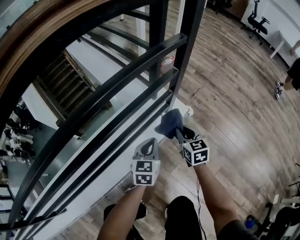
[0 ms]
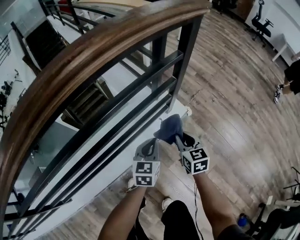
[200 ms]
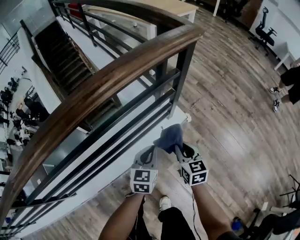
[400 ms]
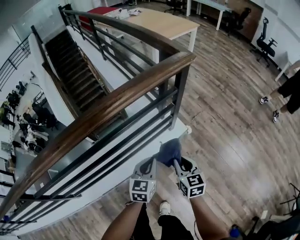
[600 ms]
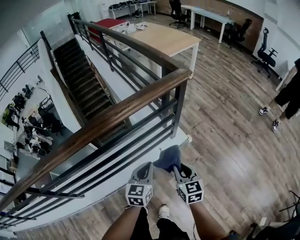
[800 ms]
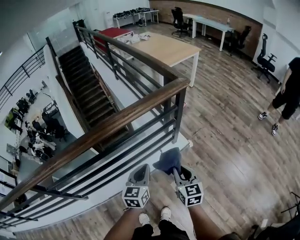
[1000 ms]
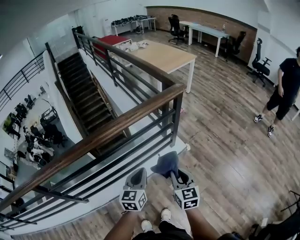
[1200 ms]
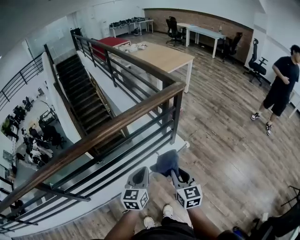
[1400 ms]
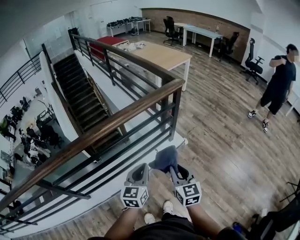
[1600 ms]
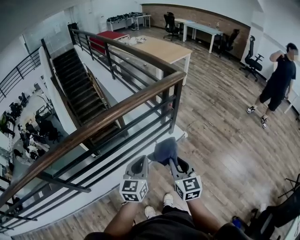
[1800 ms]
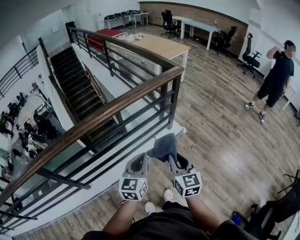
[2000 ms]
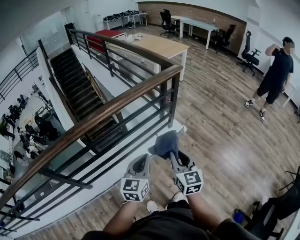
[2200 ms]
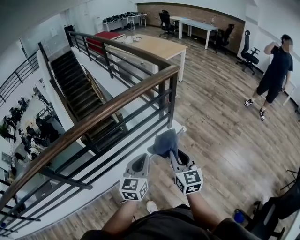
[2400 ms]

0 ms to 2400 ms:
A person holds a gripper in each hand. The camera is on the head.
0 ms to 1200 ms: Both grippers travel together upward and backward, approximately 60 cm.
1200 ms to 2400 ms: The left gripper shifts approximately 20 cm backward, while the right gripper shifts some 20 cm backward and upward.

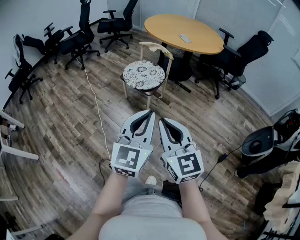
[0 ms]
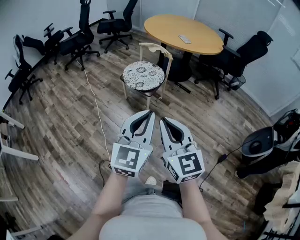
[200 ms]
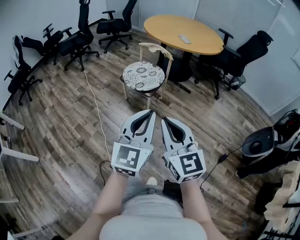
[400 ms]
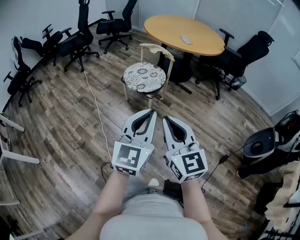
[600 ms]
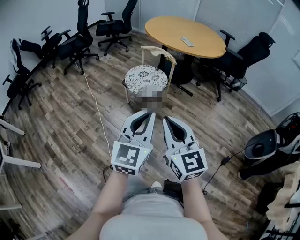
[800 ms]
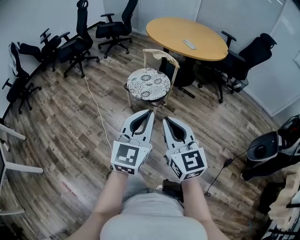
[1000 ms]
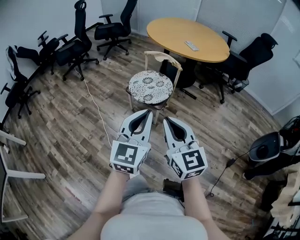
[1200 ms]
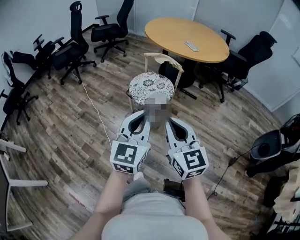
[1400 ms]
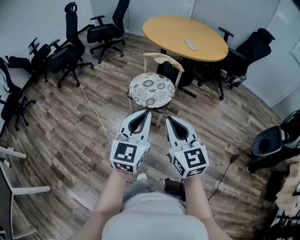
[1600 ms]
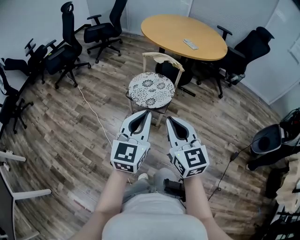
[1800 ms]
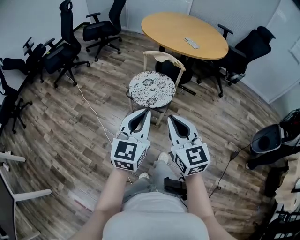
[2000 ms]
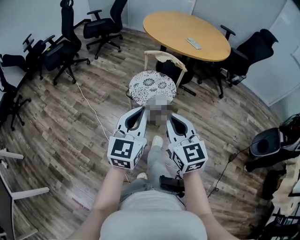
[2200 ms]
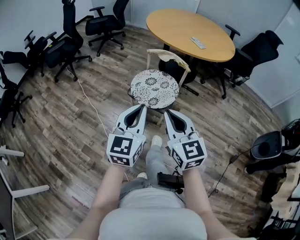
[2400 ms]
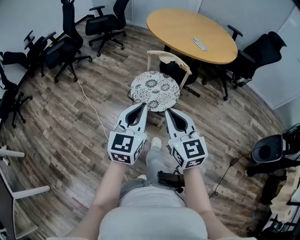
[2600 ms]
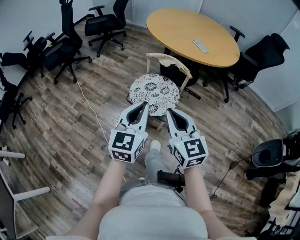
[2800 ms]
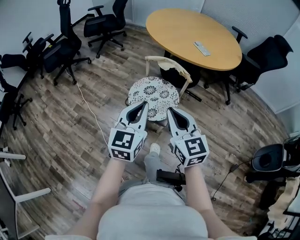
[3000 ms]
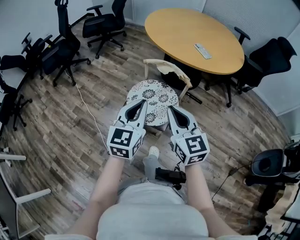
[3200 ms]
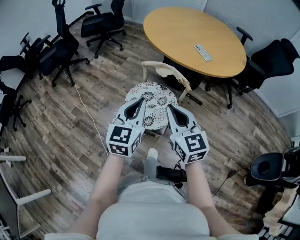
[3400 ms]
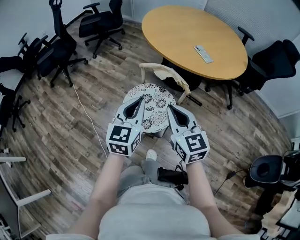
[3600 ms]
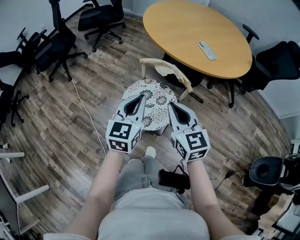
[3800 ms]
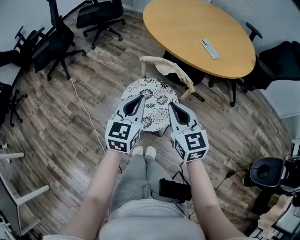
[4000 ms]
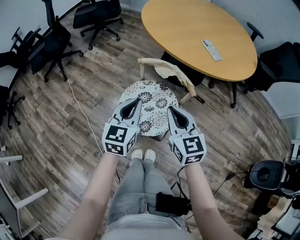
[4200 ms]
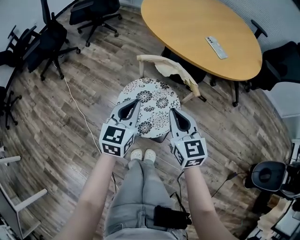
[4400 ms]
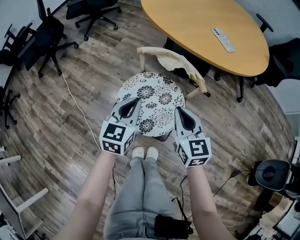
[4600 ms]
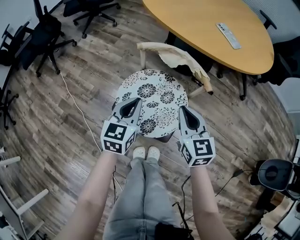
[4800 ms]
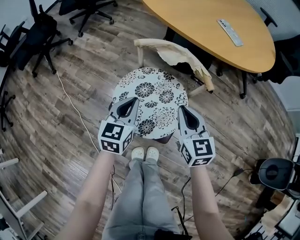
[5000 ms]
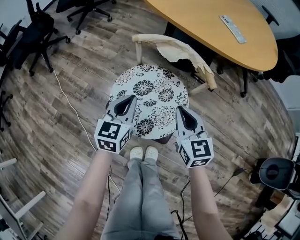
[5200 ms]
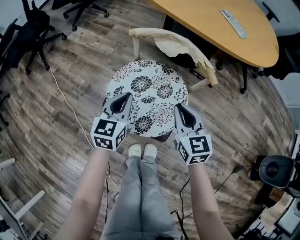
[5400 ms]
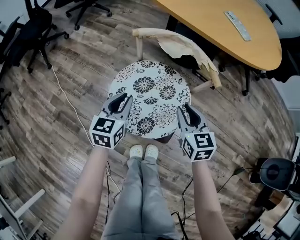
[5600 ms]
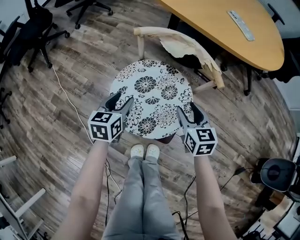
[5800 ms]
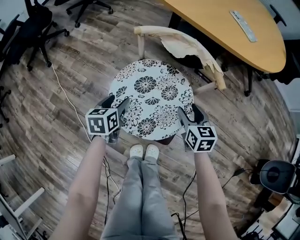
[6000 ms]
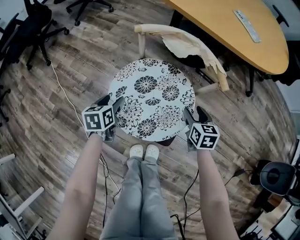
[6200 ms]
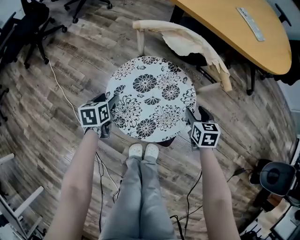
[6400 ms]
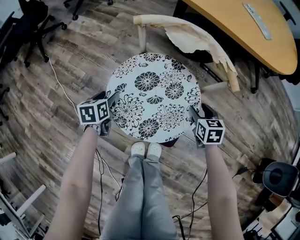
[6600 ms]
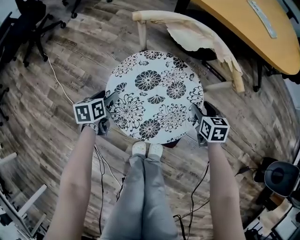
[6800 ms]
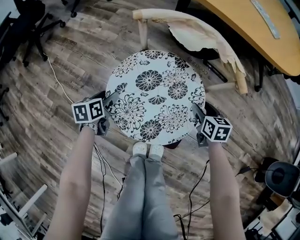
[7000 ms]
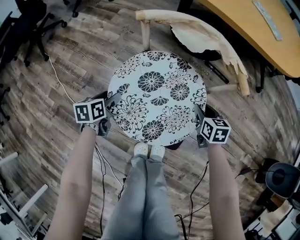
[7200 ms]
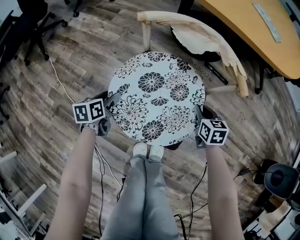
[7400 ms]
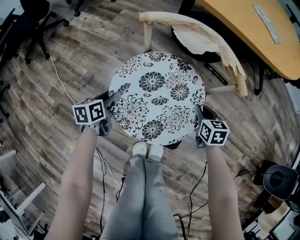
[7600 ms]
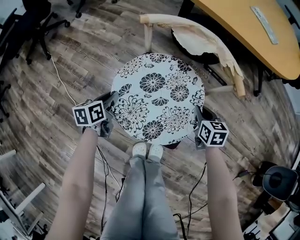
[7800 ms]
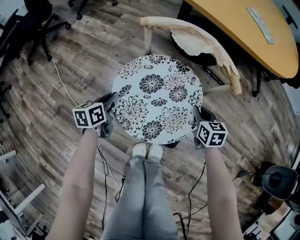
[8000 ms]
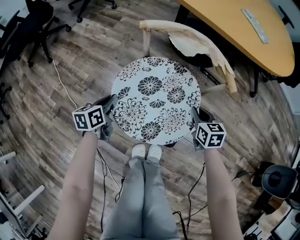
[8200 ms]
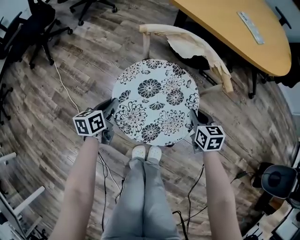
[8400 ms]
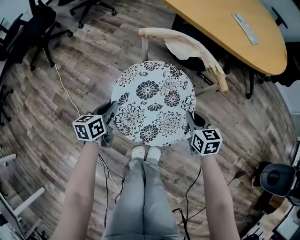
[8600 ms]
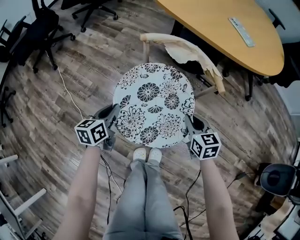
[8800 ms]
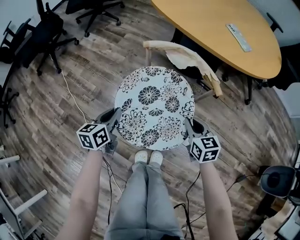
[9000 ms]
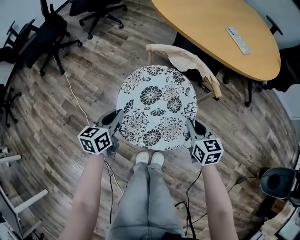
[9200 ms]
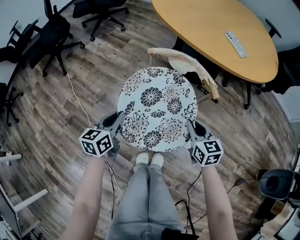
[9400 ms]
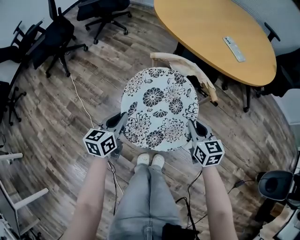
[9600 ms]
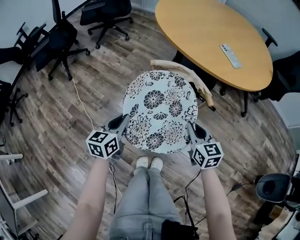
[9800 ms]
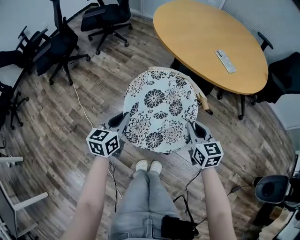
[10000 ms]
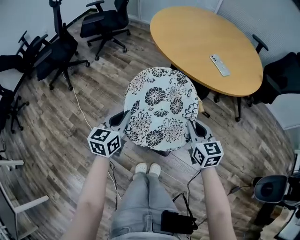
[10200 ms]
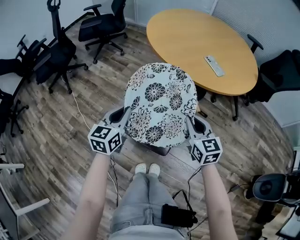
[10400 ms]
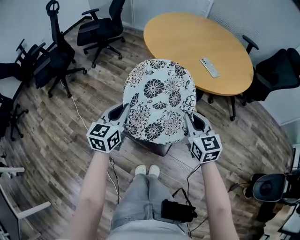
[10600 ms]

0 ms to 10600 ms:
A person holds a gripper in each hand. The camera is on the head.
0 ms to 1600 ms: Both grippers move forward and to the left, about 25 cm.
1600 ms to 3000 ms: Both grippers move forward, approximately 25 cm.
3000 ms to 4600 ms: The two grippers go roughly 30 cm forward and downward.
4600 ms to 6000 ms: The two grippers go approximately 25 cm downward. The right gripper opens. Meanwhile the left gripper changes its angle by roughly 30 degrees, and opens its fingers.
6000 ms to 7600 ms: The left gripper moves downward and to the left, roughly 10 cm. The right gripper is displaced downward by approximately 10 cm, and closes up.
7600 ms to 9000 ms: Both grippers move upward, approximately 15 cm. The left gripper closes.
9000 ms to 10600 ms: The grippers both shift upward by approximately 30 cm. The left gripper turns by about 30 degrees. Meanwhile the right gripper swivels roughly 20 degrees.

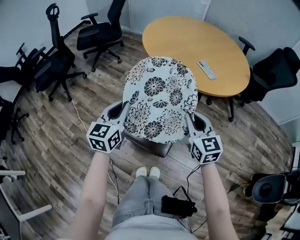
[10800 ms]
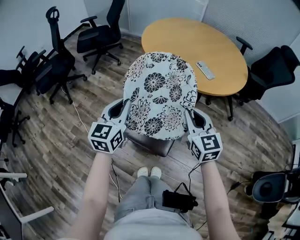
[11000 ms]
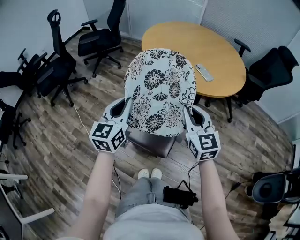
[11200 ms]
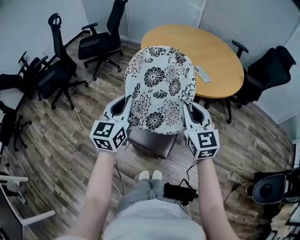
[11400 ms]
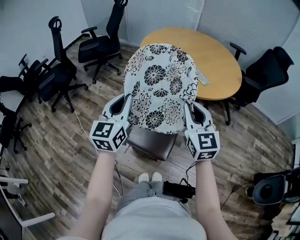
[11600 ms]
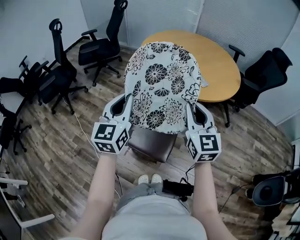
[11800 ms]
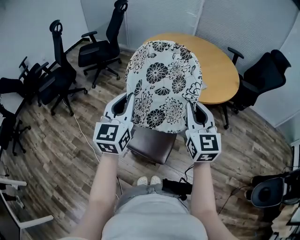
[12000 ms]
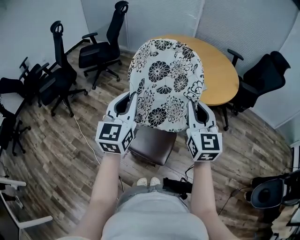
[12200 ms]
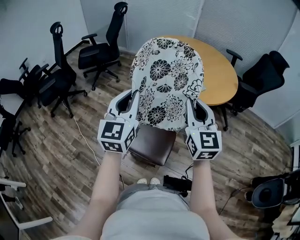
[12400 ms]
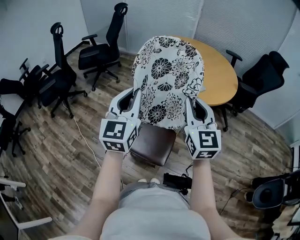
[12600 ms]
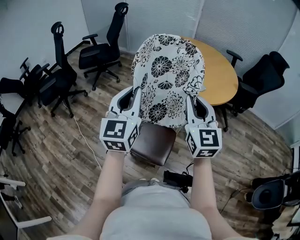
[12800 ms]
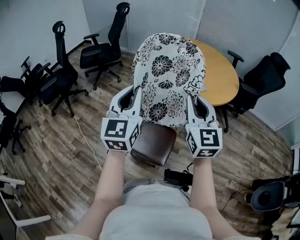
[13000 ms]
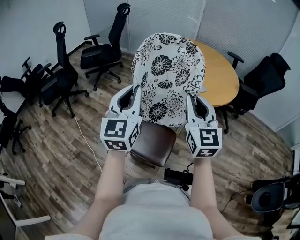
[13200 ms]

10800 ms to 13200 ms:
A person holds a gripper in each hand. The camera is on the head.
10800 ms to 12000 ms: Both grippers move upward, about 15 cm.
12000 ms to 13200 ms: The left gripper changes place by about 5 cm.

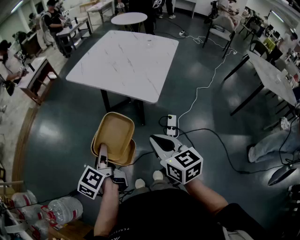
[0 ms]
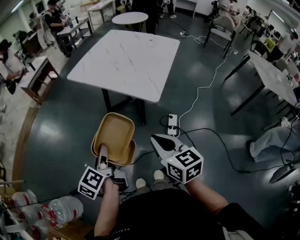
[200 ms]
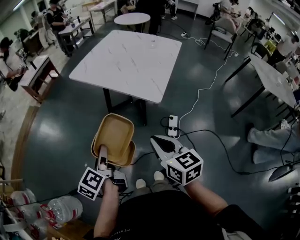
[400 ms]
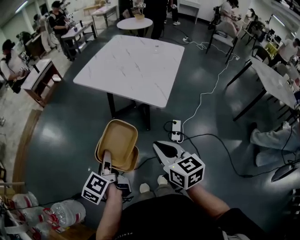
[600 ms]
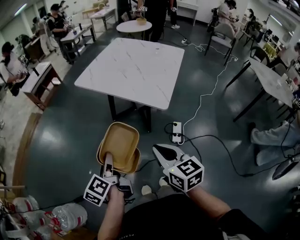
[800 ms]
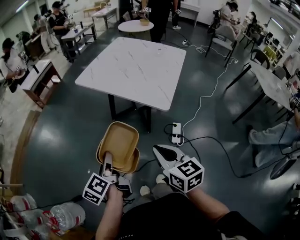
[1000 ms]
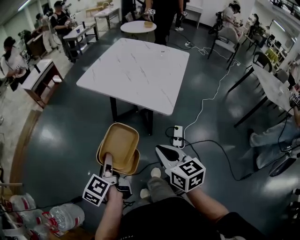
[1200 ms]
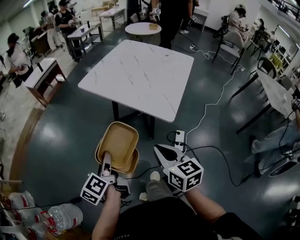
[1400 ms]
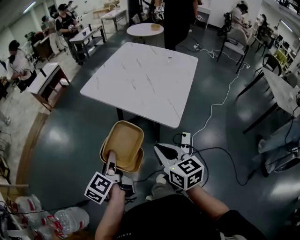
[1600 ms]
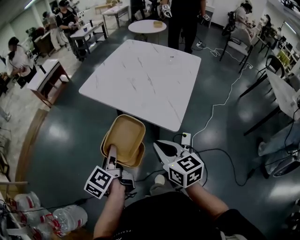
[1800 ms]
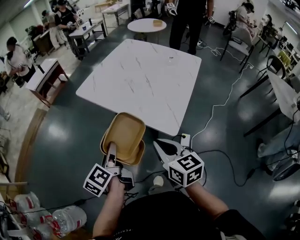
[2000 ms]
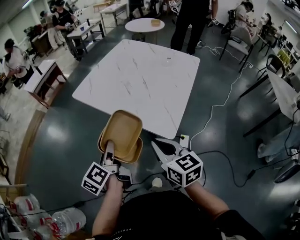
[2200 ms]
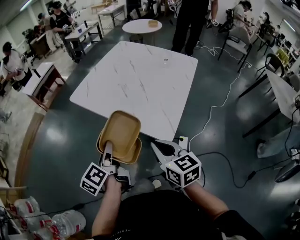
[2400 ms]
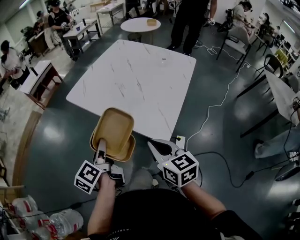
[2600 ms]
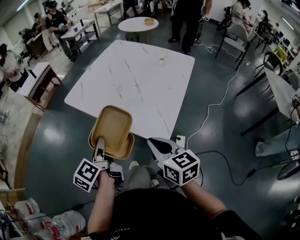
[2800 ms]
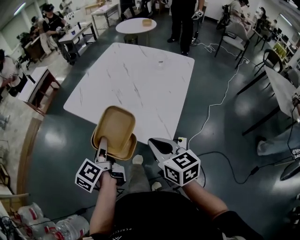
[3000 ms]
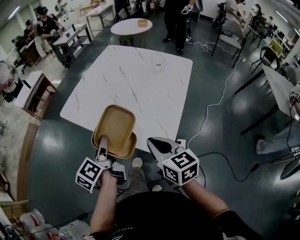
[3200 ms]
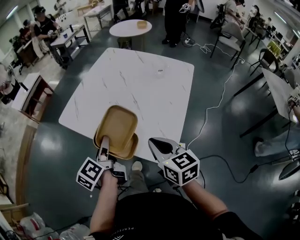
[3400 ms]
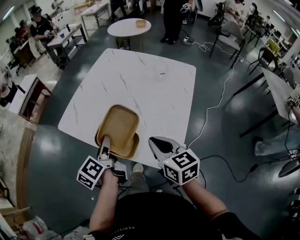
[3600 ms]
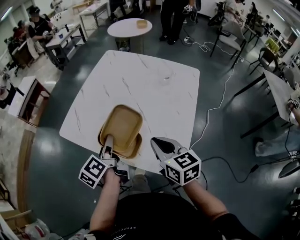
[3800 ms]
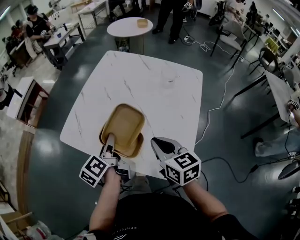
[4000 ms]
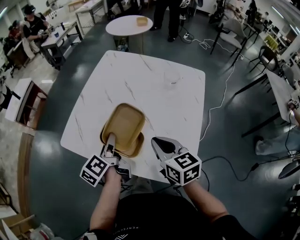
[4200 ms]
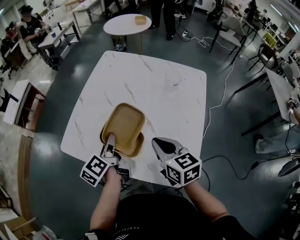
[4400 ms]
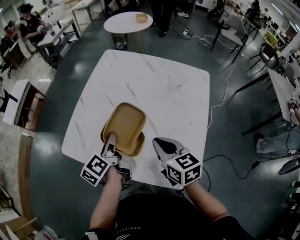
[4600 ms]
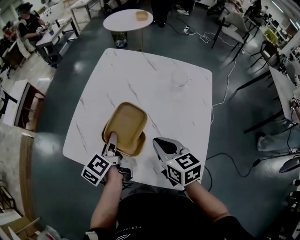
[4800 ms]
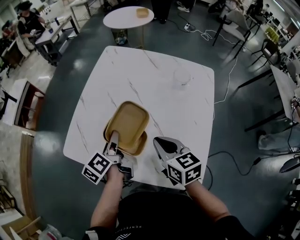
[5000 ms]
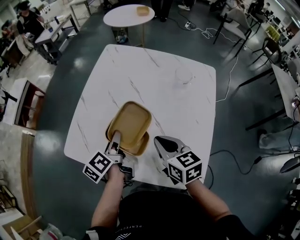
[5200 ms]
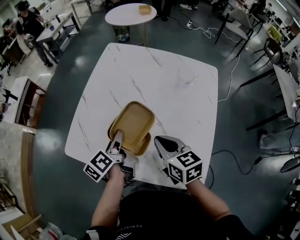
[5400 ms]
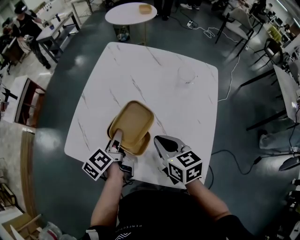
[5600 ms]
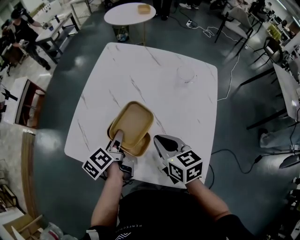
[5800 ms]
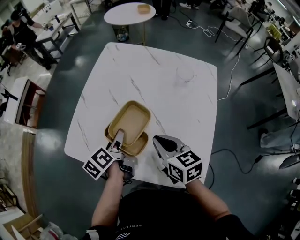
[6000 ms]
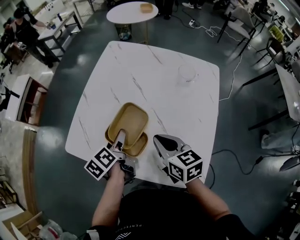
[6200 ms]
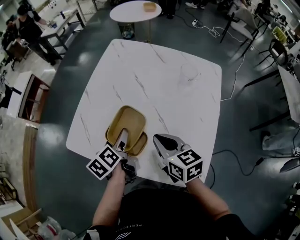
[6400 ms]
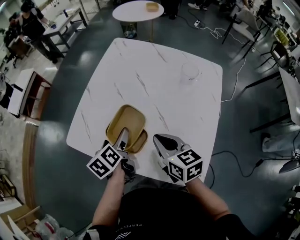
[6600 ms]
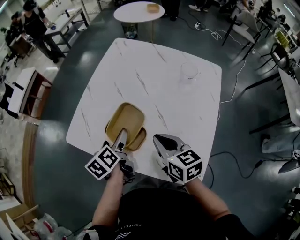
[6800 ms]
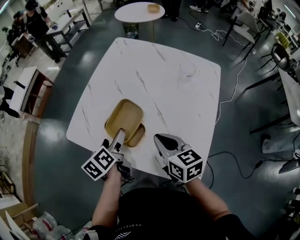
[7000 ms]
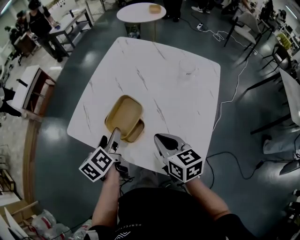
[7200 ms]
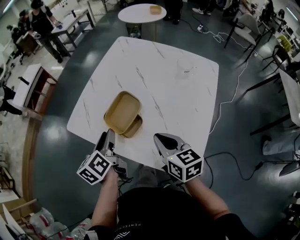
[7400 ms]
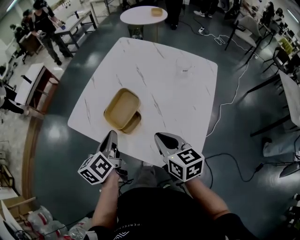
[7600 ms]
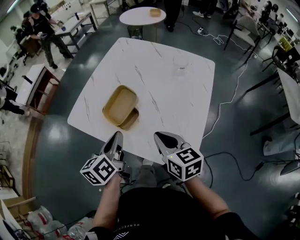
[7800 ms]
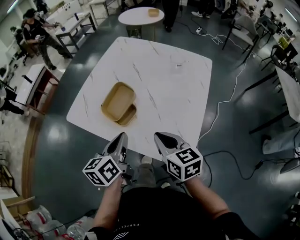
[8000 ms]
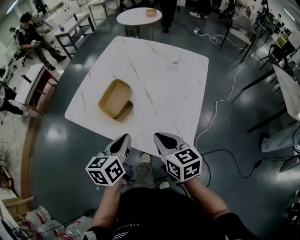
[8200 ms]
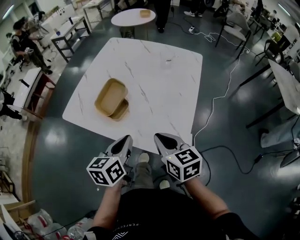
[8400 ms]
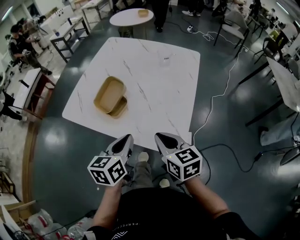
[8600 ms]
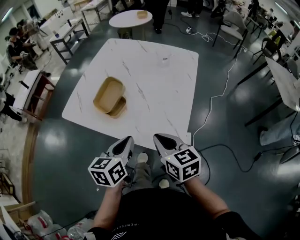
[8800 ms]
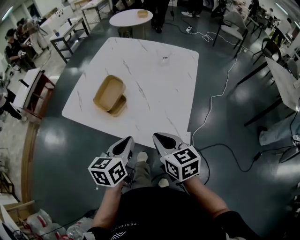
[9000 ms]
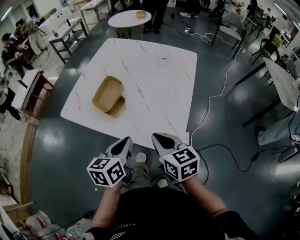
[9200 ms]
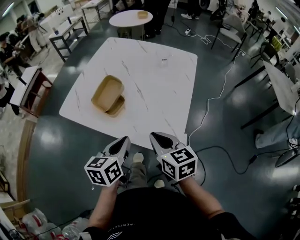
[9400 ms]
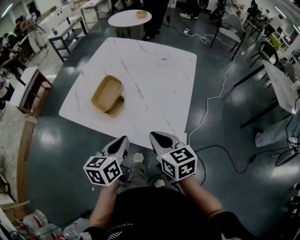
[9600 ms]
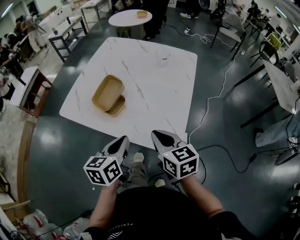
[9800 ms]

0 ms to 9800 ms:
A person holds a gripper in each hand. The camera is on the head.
0 ms to 1400 ms: Both grippers travel together forward, roughly 5 cm.
1400 ms to 2800 ms: Both grippers move forward and to the right, about 20 cm.
2800 ms to 4200 ms: Both grippers travel together forward, roughly 30 cm.
4200 ms to 5600 ms: The two grippers go about 5 cm forward.
5600 ms to 7000 ms: The left gripper is displaced backward by approximately 5 cm, and opens its fingers.
7000 ms to 8400 ms: The left gripper travels backward and to the right by about 25 cm, changes its angle by roughly 30 degrees, and closes, while the right gripper travels backward by roughly 15 cm.
8400 ms to 9800 ms: The grippers move only a little.
